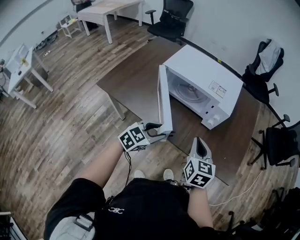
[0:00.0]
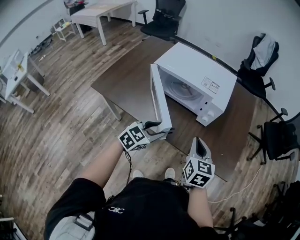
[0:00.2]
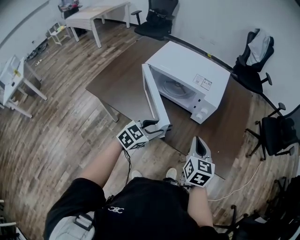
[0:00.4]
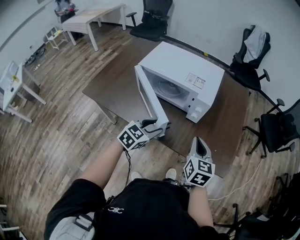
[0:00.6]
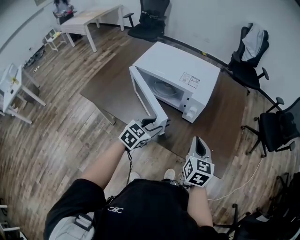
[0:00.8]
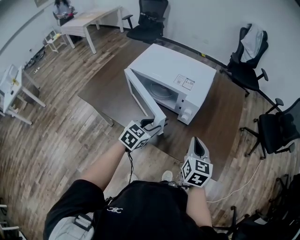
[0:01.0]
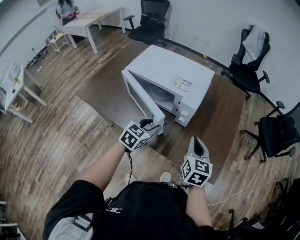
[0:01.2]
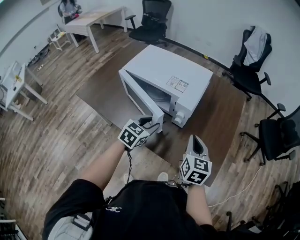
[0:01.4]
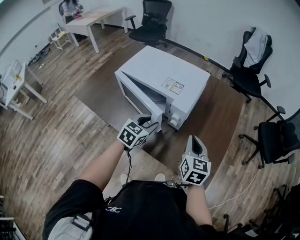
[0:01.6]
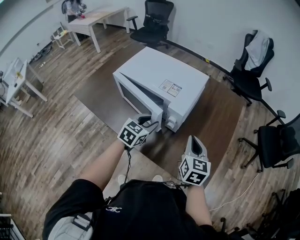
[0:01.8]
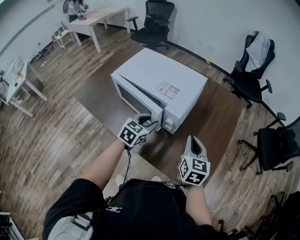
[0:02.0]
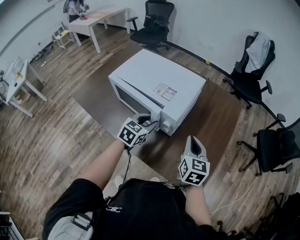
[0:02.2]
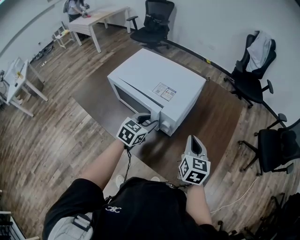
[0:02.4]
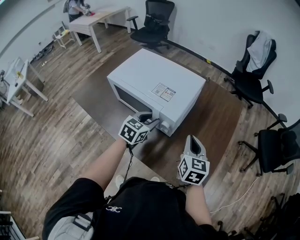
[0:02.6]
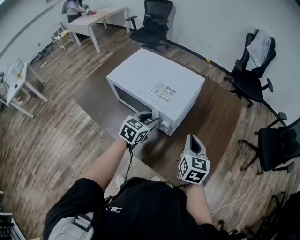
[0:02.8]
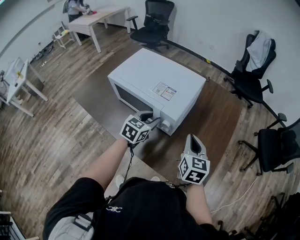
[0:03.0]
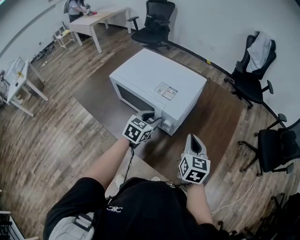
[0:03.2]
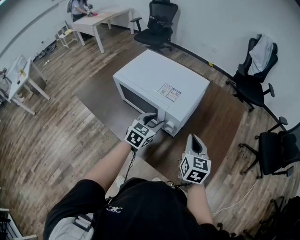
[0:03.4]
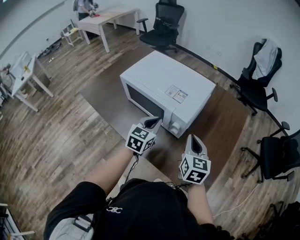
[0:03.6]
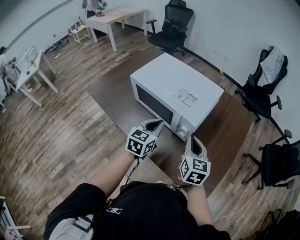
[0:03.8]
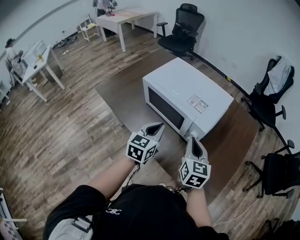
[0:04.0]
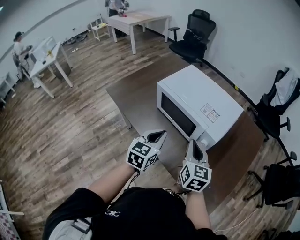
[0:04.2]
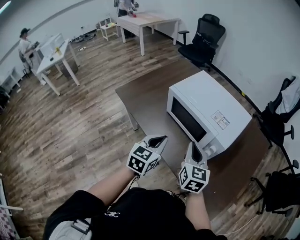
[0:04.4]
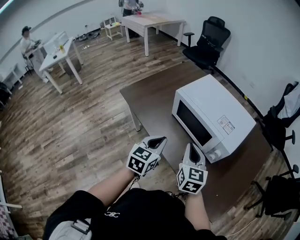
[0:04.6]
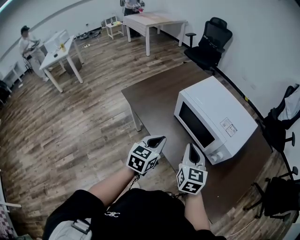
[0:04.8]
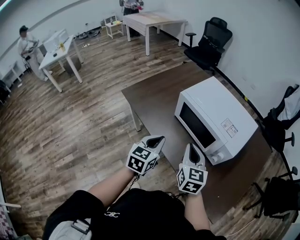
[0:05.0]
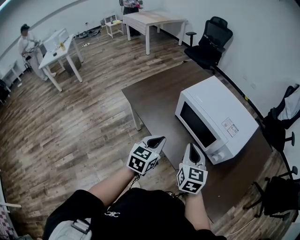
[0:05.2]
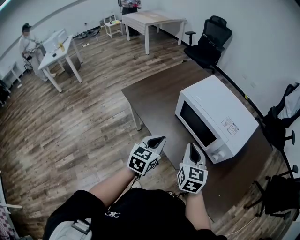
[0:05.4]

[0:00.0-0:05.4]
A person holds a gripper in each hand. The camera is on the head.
0:00.0 to 0:01.4: The left gripper heads forward and to the right, covering approximately 20 cm, while the right gripper goes approximately 20 cm to the right and forward.
0:01.4 to 0:02.8: The two grippers go some 10 cm forward.
0:02.8 to 0:04.0: The right gripper is displaced to the left by some 15 cm. Meanwhile the left gripper is displaced to the left, backward and upward by approximately 15 cm, turns by approximately 20 degrees, and closes up.
0:04.0 to 0:05.4: The two grippers go roughly 15 cm to the left.

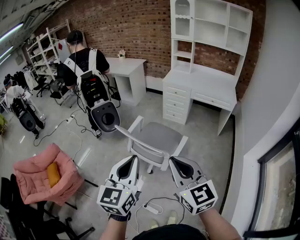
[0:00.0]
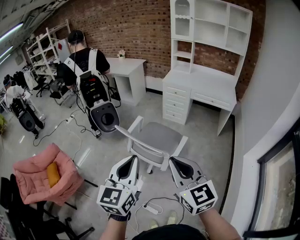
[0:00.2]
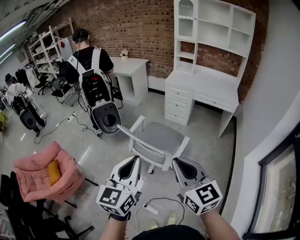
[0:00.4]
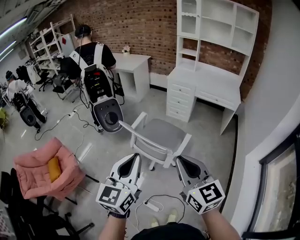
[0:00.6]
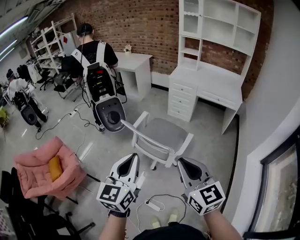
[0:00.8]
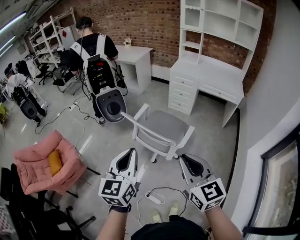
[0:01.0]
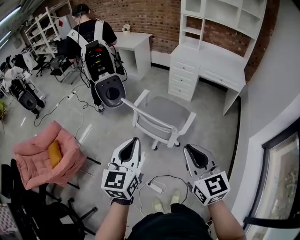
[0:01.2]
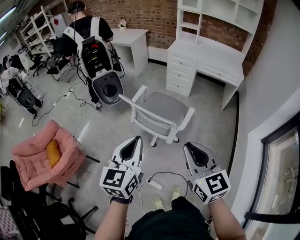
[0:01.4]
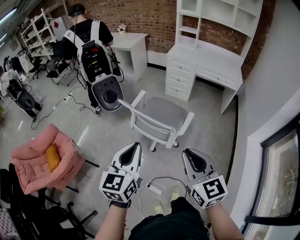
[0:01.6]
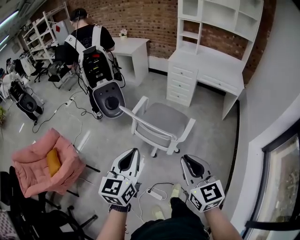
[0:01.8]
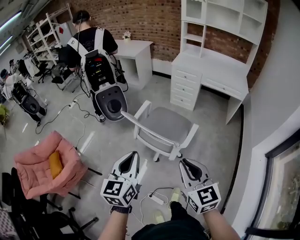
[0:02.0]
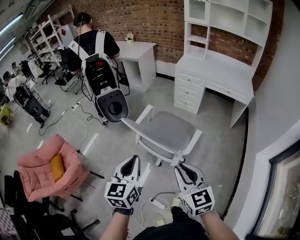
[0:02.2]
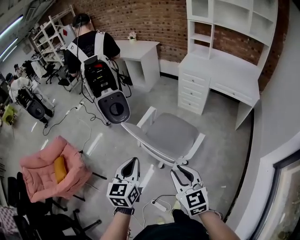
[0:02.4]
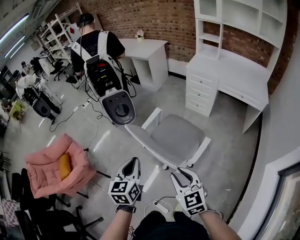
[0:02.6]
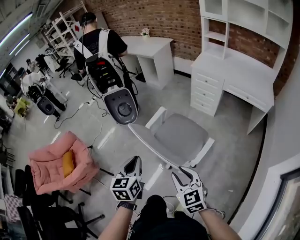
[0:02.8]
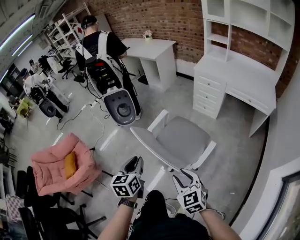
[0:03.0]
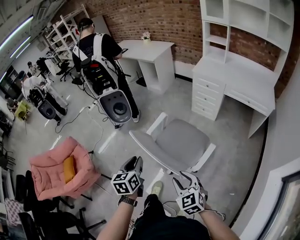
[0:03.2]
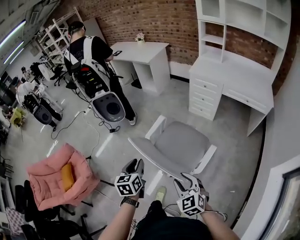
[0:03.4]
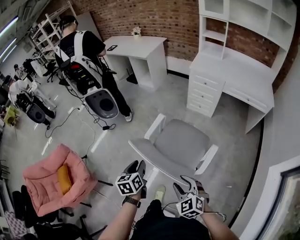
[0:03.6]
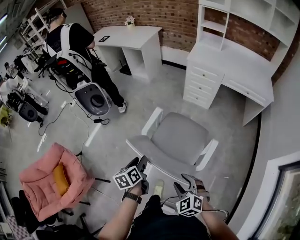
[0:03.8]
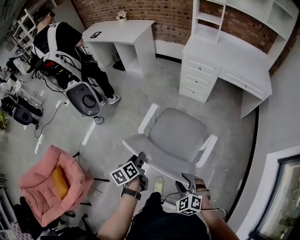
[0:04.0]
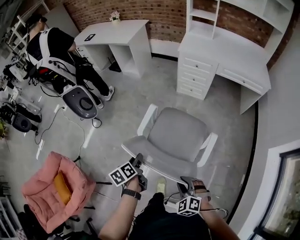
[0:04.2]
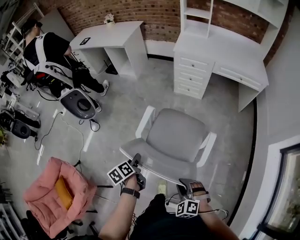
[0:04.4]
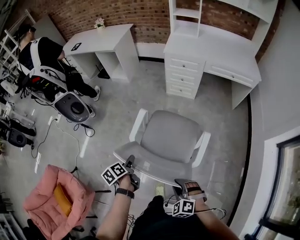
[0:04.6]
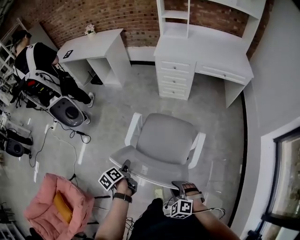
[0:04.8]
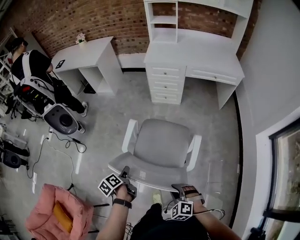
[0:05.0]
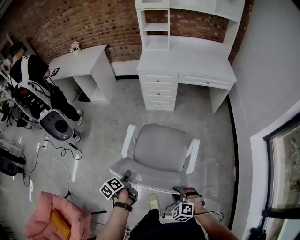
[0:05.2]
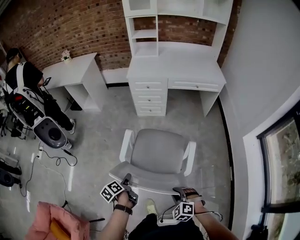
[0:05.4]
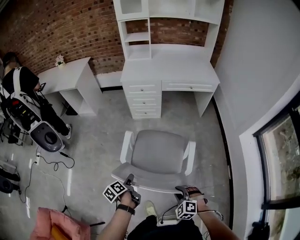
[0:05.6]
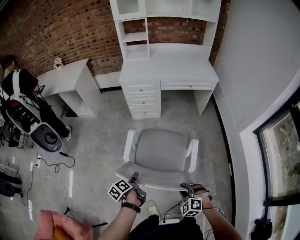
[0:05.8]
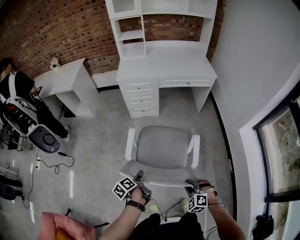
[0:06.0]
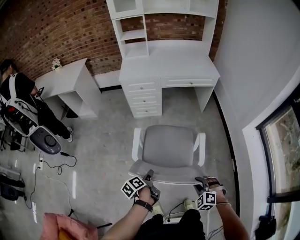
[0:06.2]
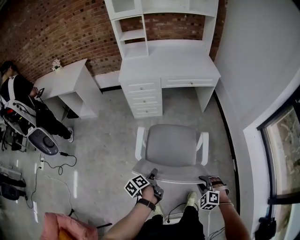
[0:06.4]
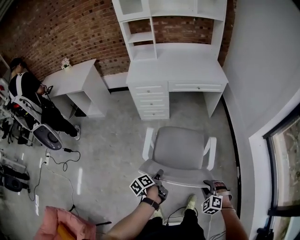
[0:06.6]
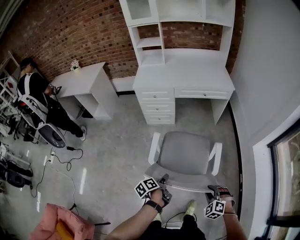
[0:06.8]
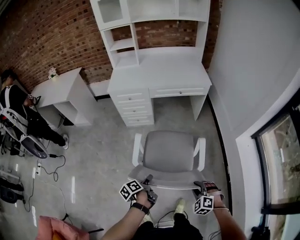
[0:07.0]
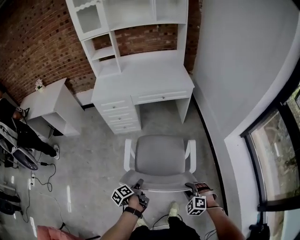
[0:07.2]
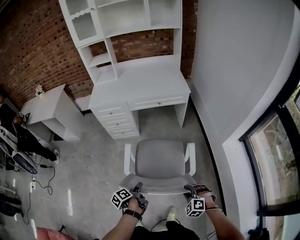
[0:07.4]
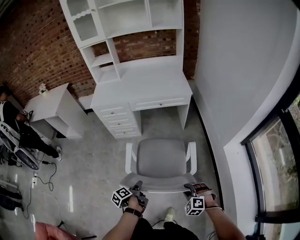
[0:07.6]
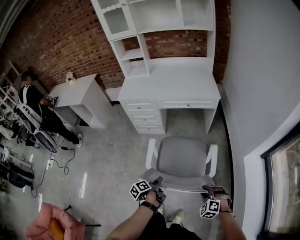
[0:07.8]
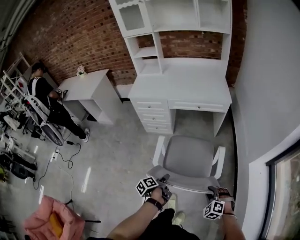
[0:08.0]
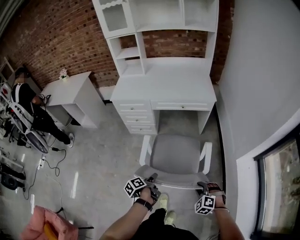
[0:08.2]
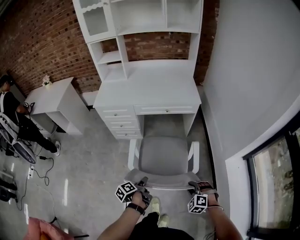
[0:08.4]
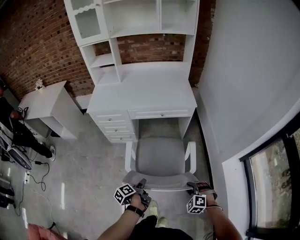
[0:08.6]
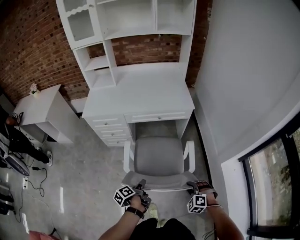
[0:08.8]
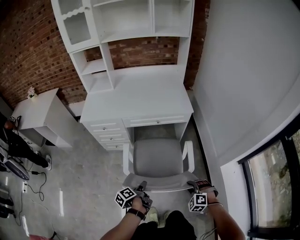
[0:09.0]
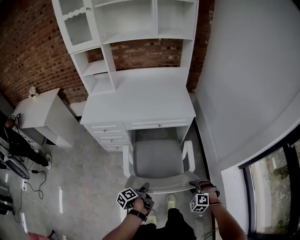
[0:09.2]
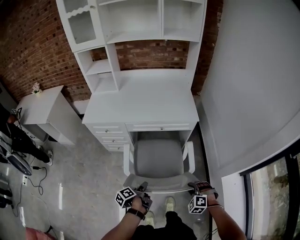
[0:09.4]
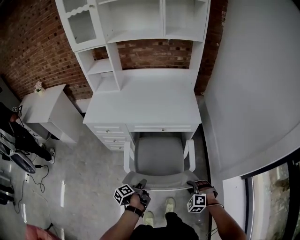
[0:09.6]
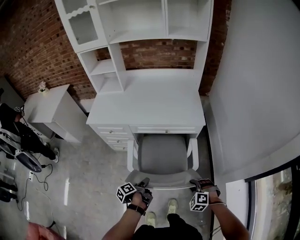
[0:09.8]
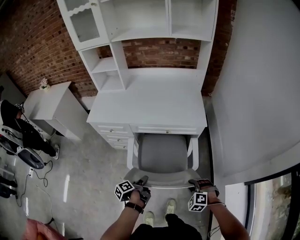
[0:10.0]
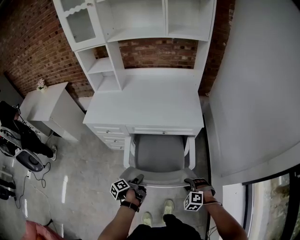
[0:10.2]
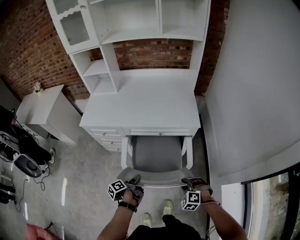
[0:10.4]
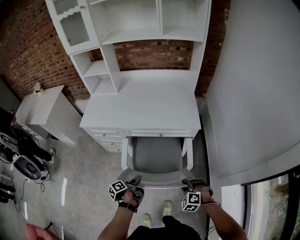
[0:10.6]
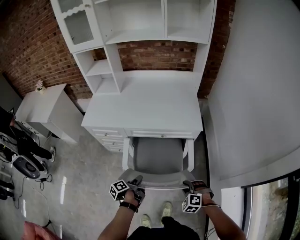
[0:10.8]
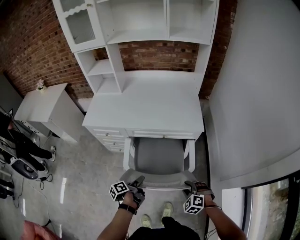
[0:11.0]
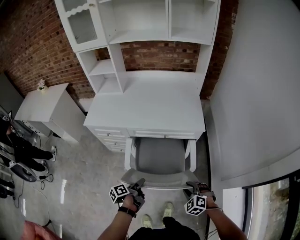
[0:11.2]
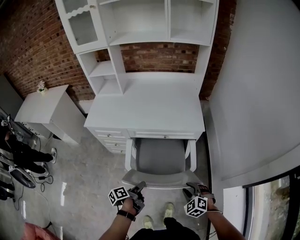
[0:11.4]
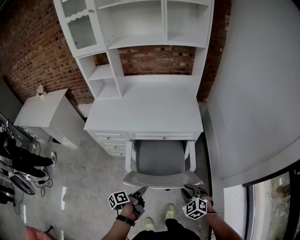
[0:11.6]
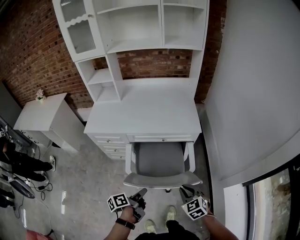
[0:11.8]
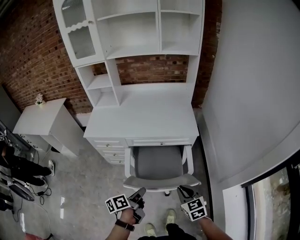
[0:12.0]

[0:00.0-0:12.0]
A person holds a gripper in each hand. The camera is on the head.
0:00.0 to 0:01.6: The left gripper is displaced downward and to the left by some 10 cm. The right gripper shifts some 10 cm downward.
0:01.6 to 0:03.0: The grippers both shift forward and downward by some 25 cm. The left gripper rotates about 30 degrees. Meanwhile the right gripper turns by roughly 30 degrees, and opens up.
0:03.0 to 0:04.4: The left gripper travels forward and downward by roughly 30 cm, rotates approximately 40 degrees, and opens up; the right gripper heads downward, forward and to the left, covering some 20 cm, and turns by approximately 40 degrees.
0:04.4 to 0:06.0: The grippers both shift to the right by some 20 cm. The left gripper changes its angle by some 20 degrees.
0:06.0 to 0:07.6: Both grippers move to the right and forward, roughly 30 cm.
0:07.6 to 0:09.0: The grippers both shift forward by approximately 20 cm.
0:09.0 to 0:10.4: Both grippers move forward, approximately 15 cm.
0:10.4 to 0:12.0: Both grippers move upward, about 15 cm. The right gripper rotates around the line of its fingers by about 60 degrees, clockwise from behind. Meanwhile the left gripper swivels about 30 degrees, and opens, then closes once more.

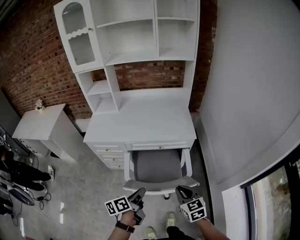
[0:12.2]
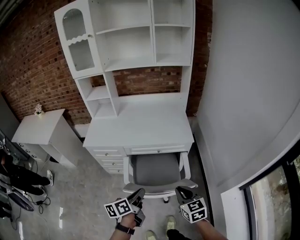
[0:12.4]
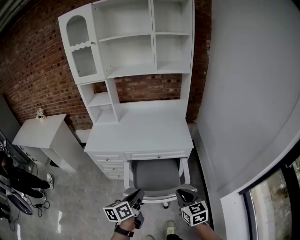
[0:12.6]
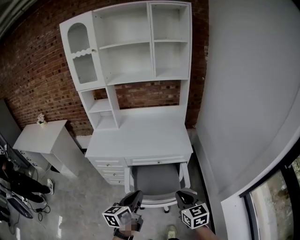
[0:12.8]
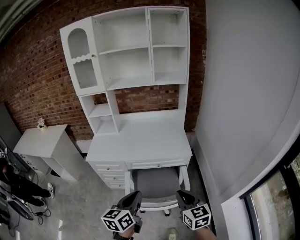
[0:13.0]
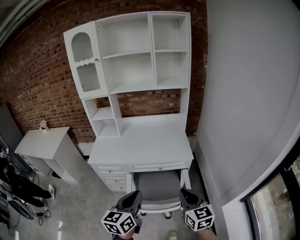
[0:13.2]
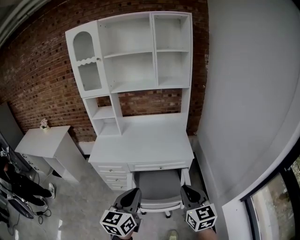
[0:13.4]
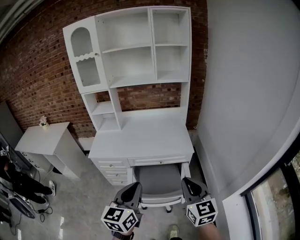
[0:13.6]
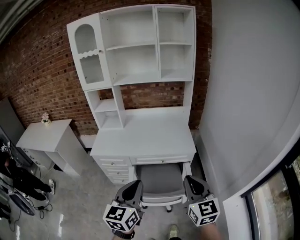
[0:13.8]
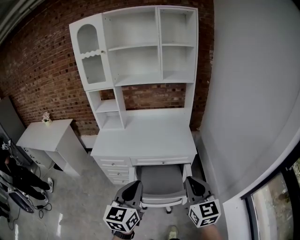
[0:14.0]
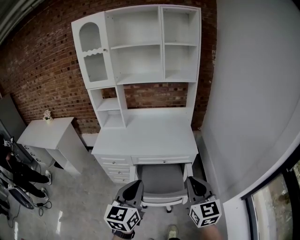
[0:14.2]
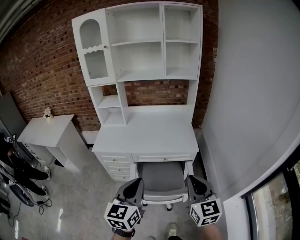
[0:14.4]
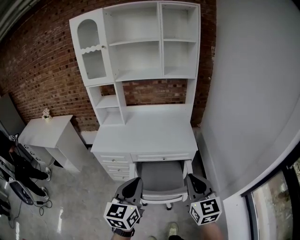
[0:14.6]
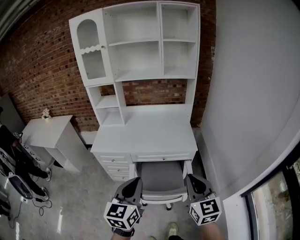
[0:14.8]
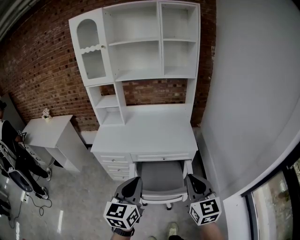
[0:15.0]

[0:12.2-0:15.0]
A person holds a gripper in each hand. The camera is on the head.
0:12.2 to 0:13.6: The two grippers go some 20 cm upward. The right gripper changes its angle by roughly 30 degrees. The left gripper rotates around the line of its fingers by roughly 50 degrees, clockwise from behind.
0:13.6 to 0:15.0: The grippers move only a little.

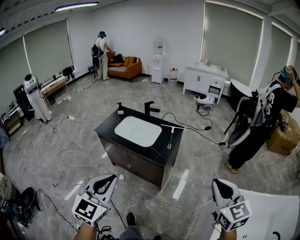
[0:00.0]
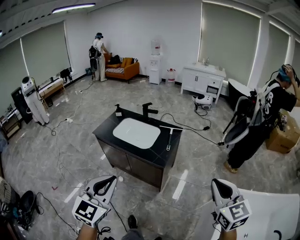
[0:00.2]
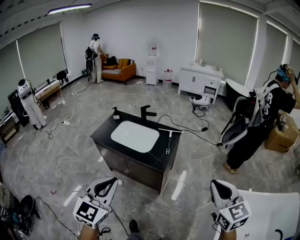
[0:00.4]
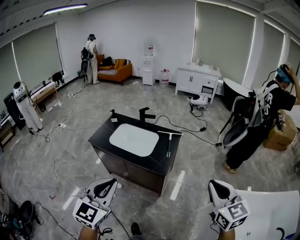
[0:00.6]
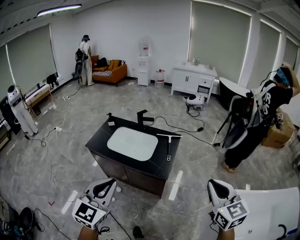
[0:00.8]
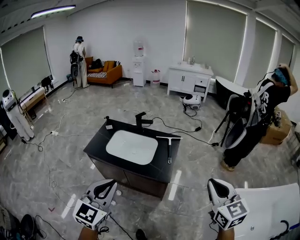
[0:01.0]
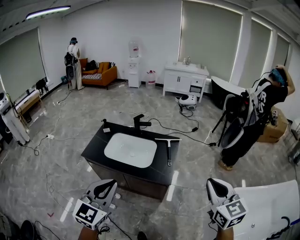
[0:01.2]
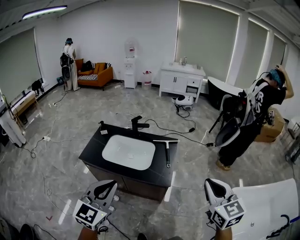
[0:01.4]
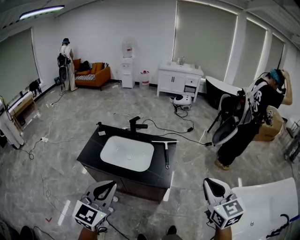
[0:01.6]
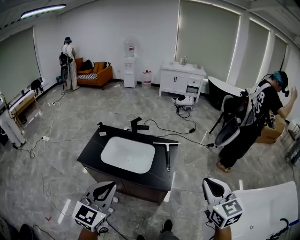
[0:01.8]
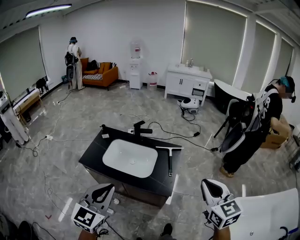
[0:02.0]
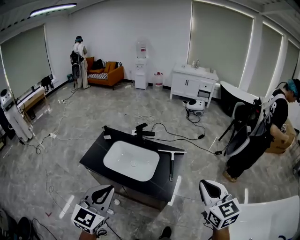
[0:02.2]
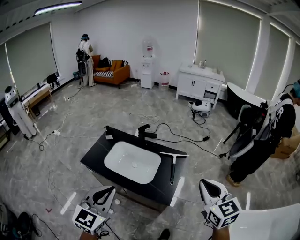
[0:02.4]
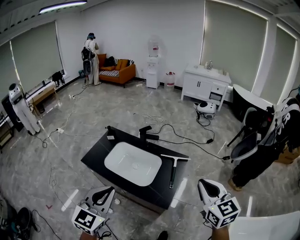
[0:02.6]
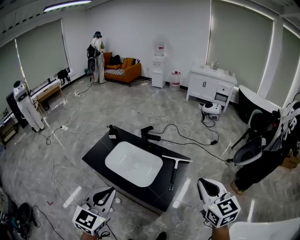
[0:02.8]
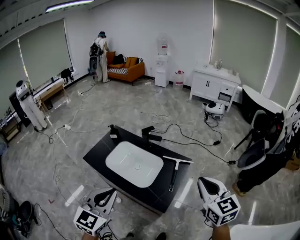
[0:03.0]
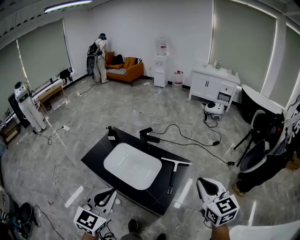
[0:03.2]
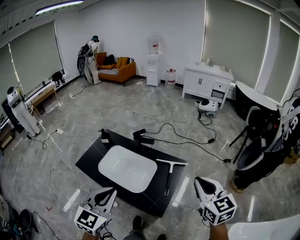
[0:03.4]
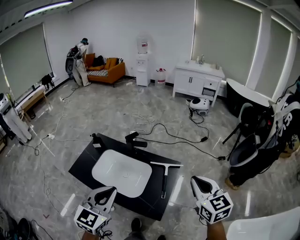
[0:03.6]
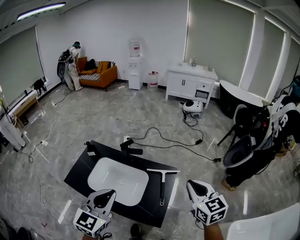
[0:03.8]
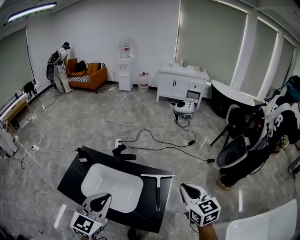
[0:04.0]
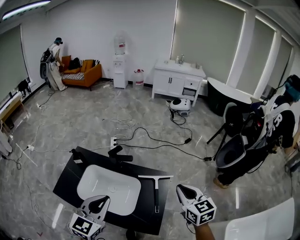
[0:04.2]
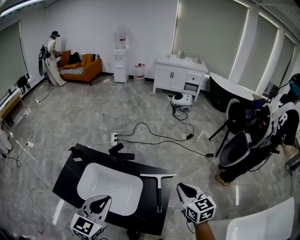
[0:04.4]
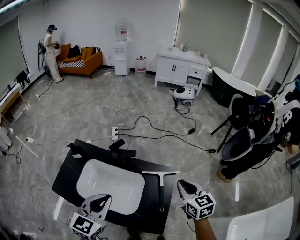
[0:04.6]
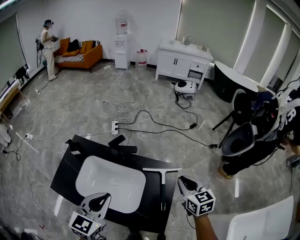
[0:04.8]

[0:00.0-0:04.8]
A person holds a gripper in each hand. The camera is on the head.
0:00.0 to 0:01.6: The grippers both shift forward and to the left by roughly 25 cm.
0:01.6 to 0:03.2: The right gripper is displaced forward by approximately 30 cm, and rotates about 20 degrees. The left gripper moves forward and to the right, roughly 20 cm.
0:03.2 to 0:04.8: Both grippers travel together forward and downward, about 30 cm. The right gripper turns by roughly 20 degrees.
